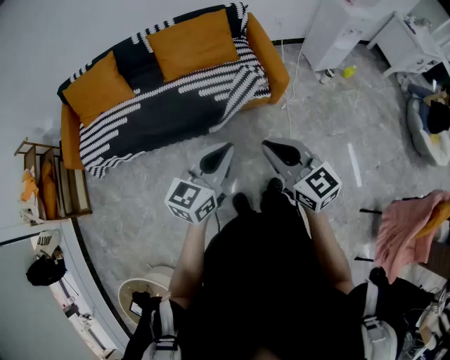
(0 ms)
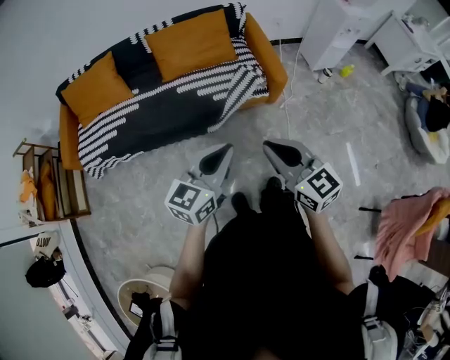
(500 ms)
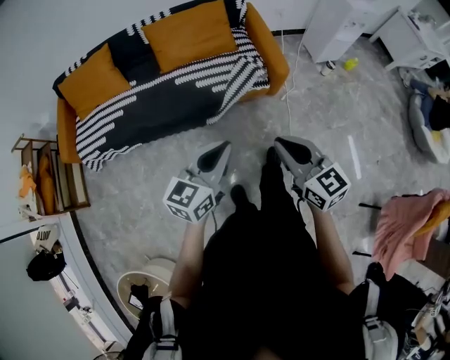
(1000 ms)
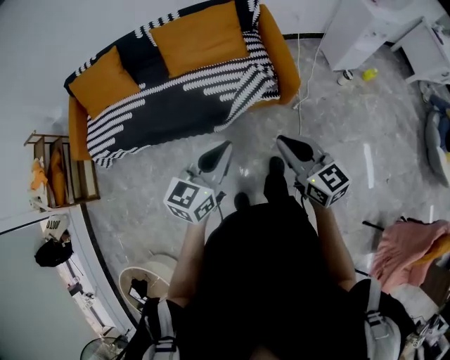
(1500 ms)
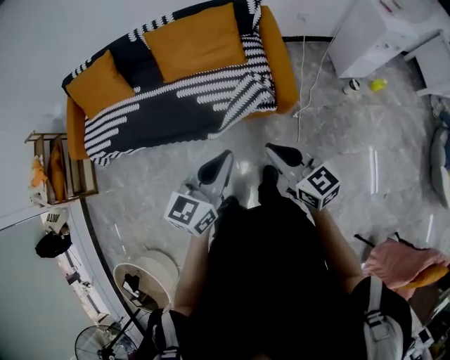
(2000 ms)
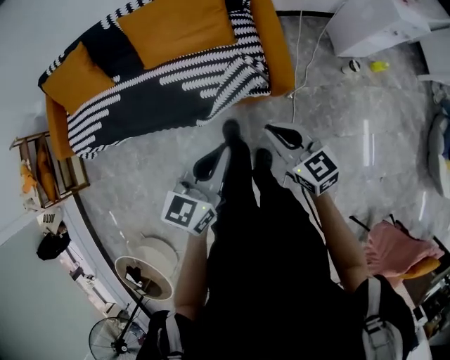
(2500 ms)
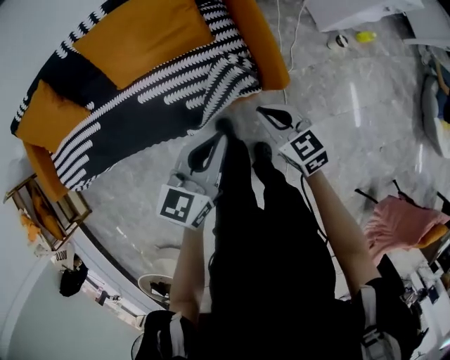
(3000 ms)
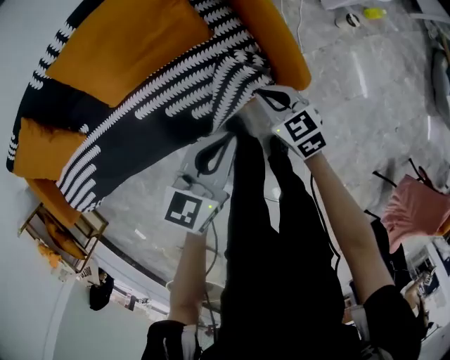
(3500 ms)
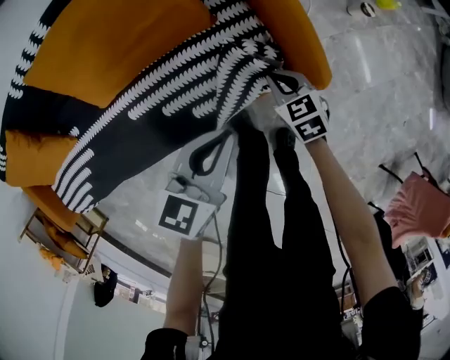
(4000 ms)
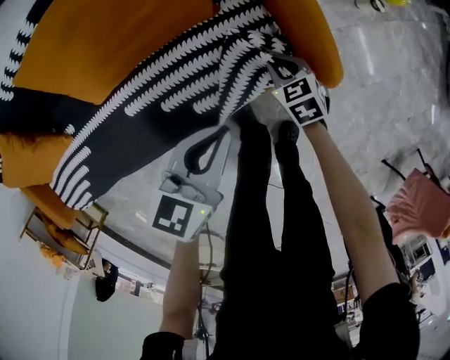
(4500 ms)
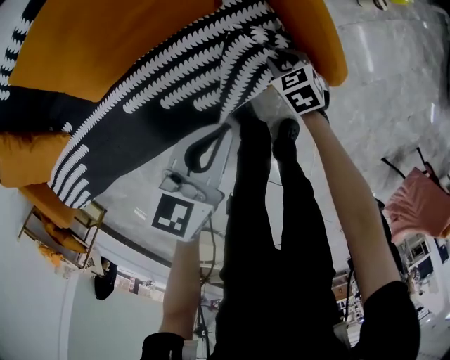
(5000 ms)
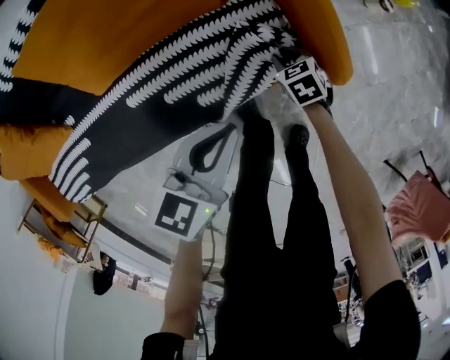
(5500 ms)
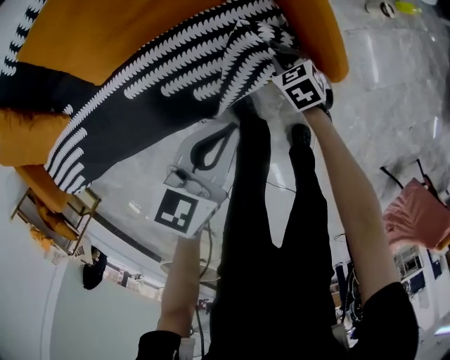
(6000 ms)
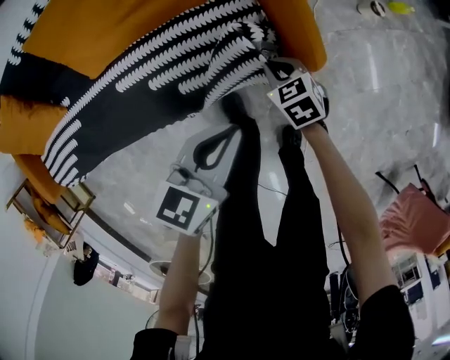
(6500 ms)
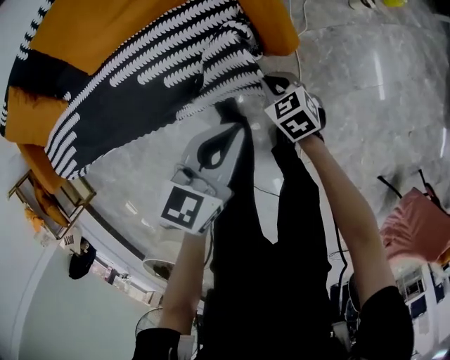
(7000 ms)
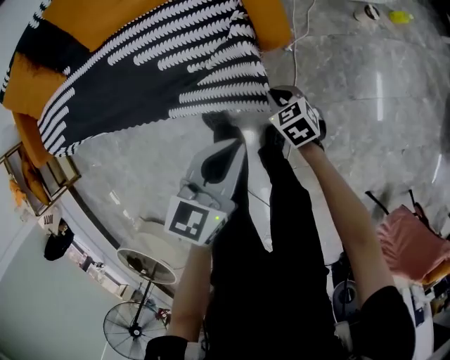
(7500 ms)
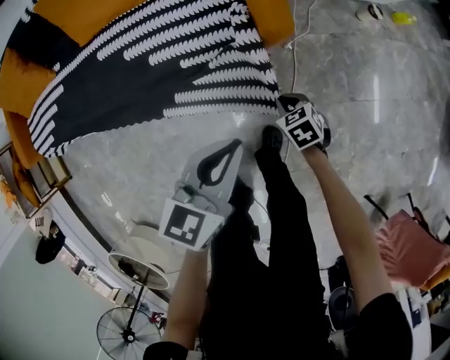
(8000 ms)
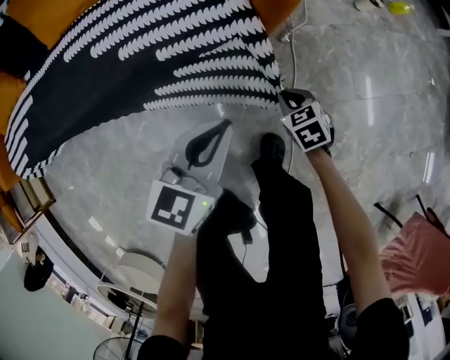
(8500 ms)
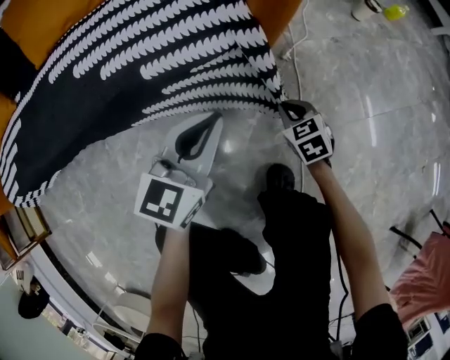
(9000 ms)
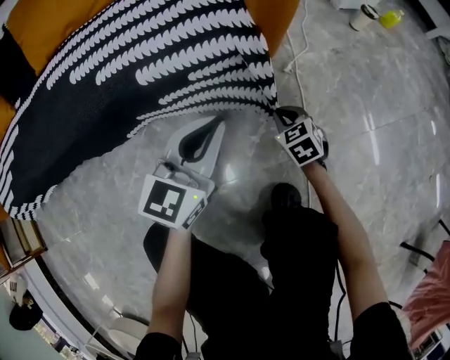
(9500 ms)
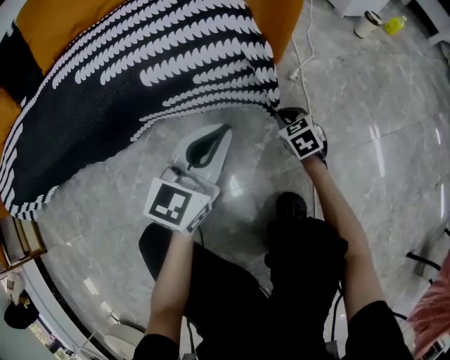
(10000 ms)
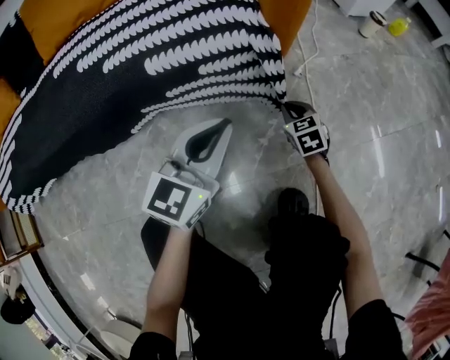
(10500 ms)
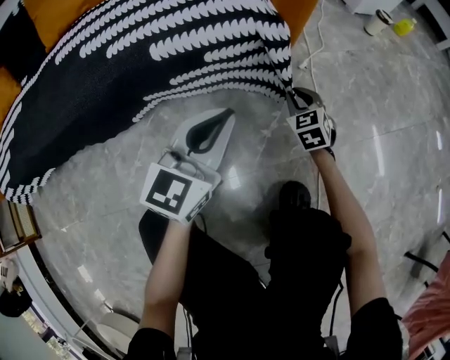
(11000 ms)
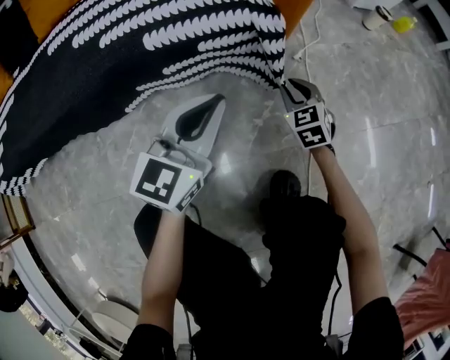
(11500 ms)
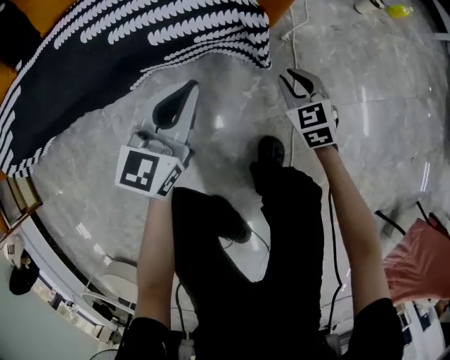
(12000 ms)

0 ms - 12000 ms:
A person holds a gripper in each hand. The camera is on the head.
0 ms - 2000 ms: The grippers both shift forward and to the right by approximately 25 cm.
2000 ms - 4000 ms: The right gripper is displaced downward and forward by some 60 cm, and tilts its fingers about 40 degrees downward; the left gripper travels forward and downward by some 40 cm, and rotates approximately 30 degrees.
4000 ms - 6000 ms: The right gripper shifts some 10 cm downward.
6000 ms - 8000 ms: The right gripper travels backward by about 20 cm. The left gripper travels backward and to the right by about 20 cm.
8000 ms - 10000 ms: Both grippers move downward, some 30 cm. The left gripper swivels approximately 20 degrees. The right gripper turns by roughly 20 degrees.
10000 ms - 12000 ms: The left gripper goes some 10 cm upward; the right gripper moves upward, about 20 cm.

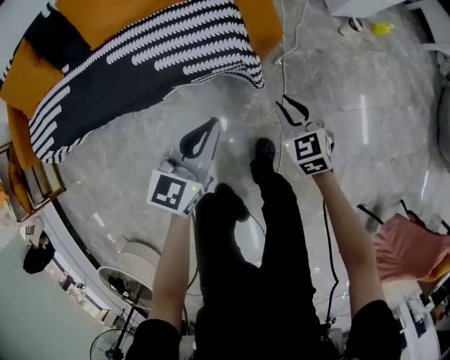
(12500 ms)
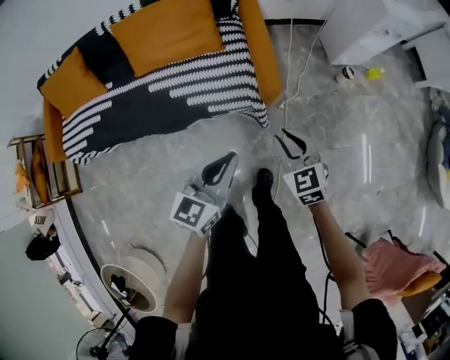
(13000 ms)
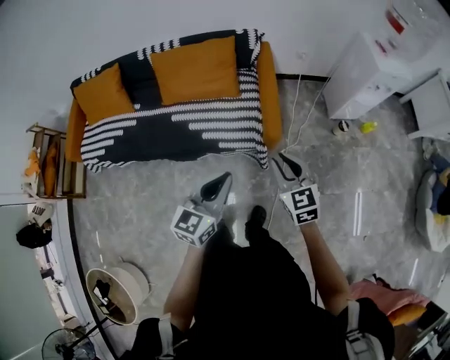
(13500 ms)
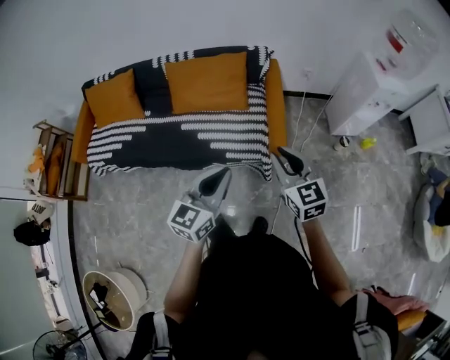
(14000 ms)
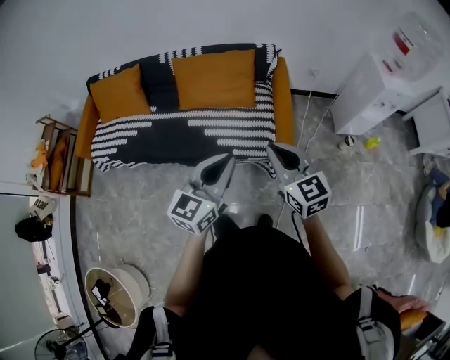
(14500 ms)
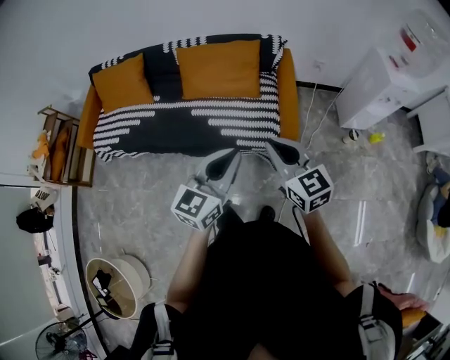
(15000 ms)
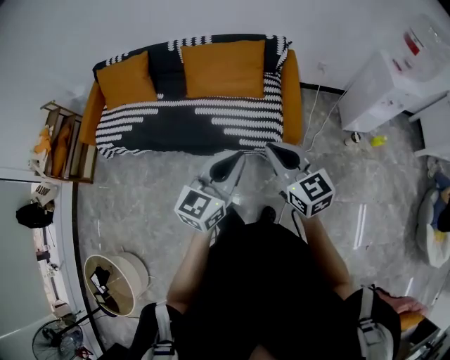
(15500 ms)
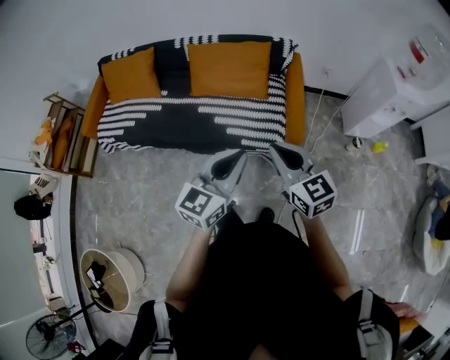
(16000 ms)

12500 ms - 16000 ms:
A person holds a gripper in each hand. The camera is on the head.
12500 ms - 14500 ms: The grippers both shift upward by roughly 40 cm. The right gripper swivels some 30 degrees.
14500 ms - 16000 ms: The grippers move only a little.

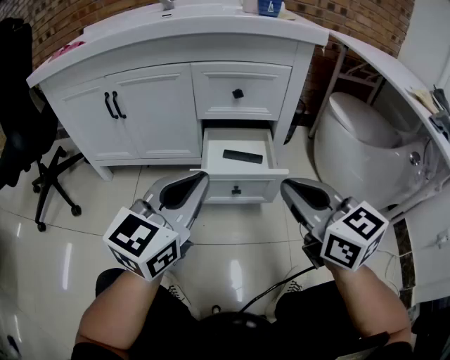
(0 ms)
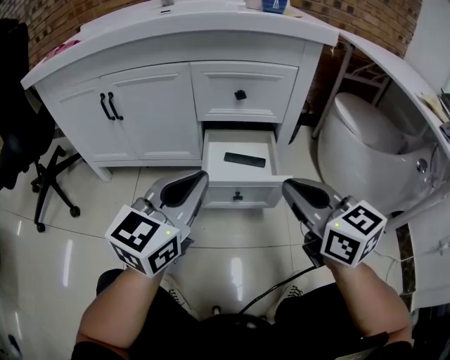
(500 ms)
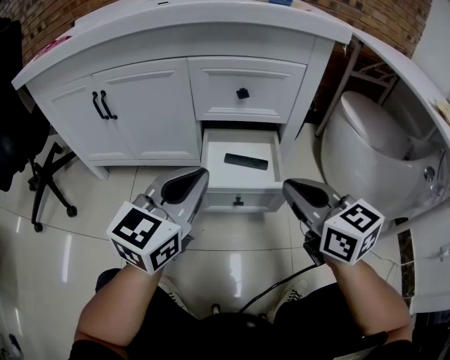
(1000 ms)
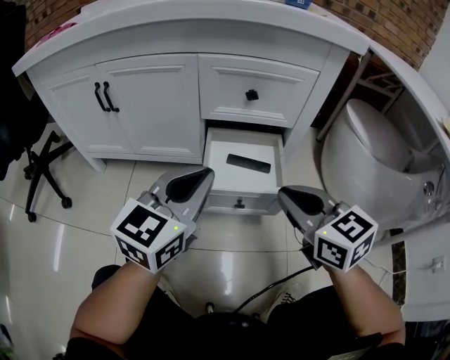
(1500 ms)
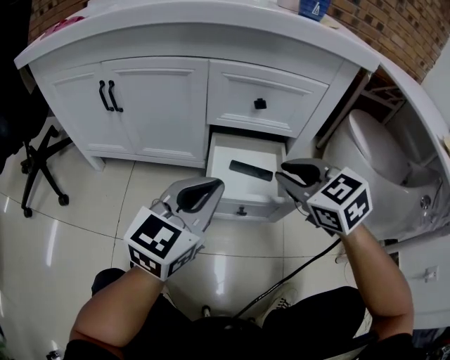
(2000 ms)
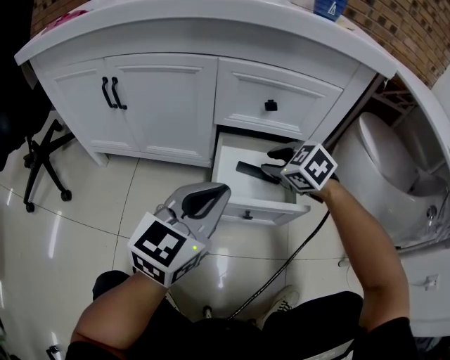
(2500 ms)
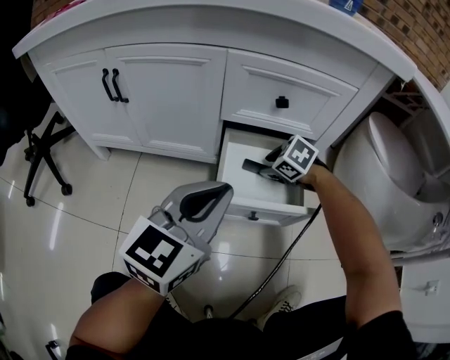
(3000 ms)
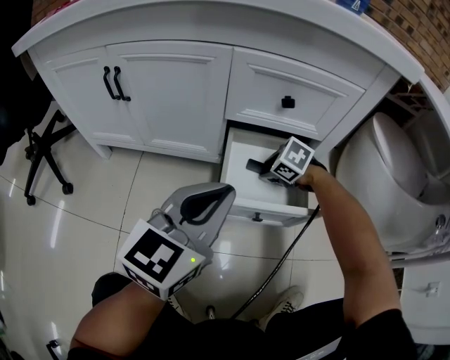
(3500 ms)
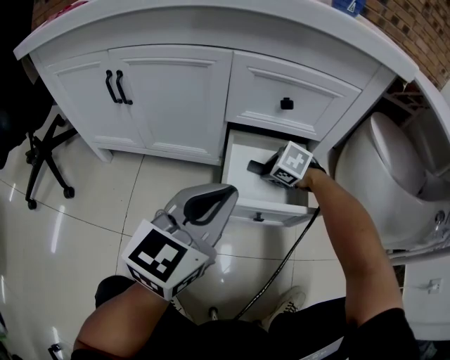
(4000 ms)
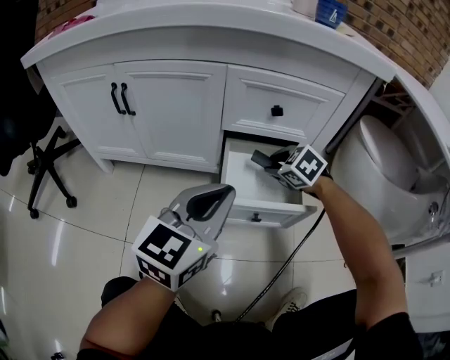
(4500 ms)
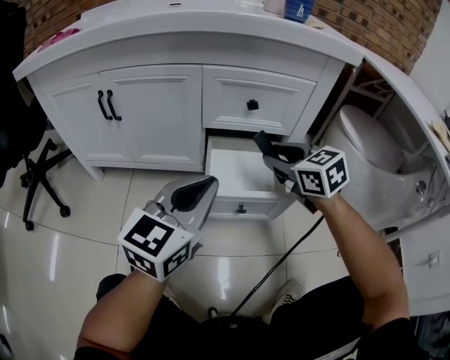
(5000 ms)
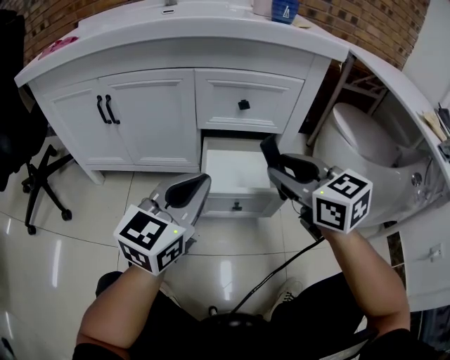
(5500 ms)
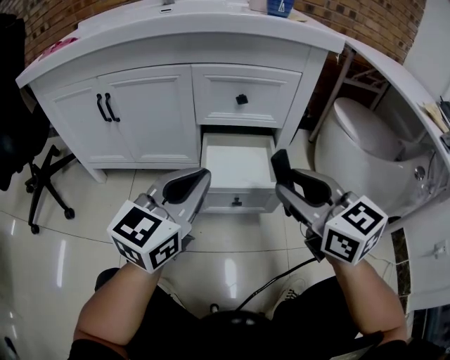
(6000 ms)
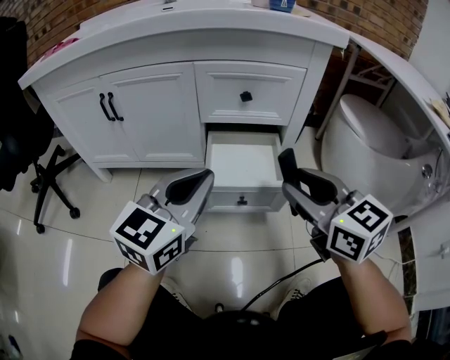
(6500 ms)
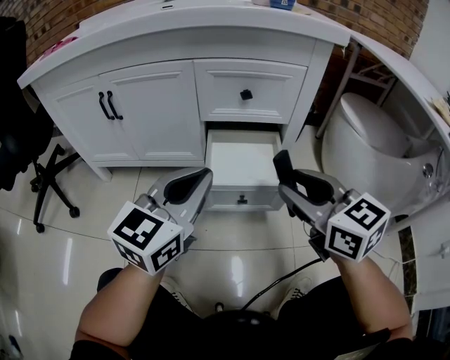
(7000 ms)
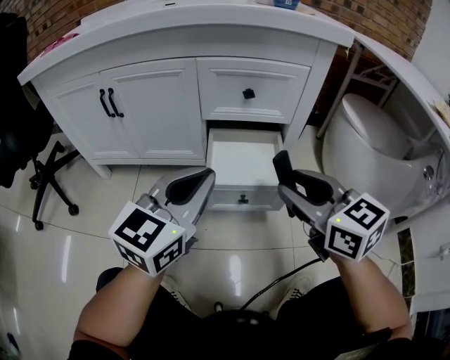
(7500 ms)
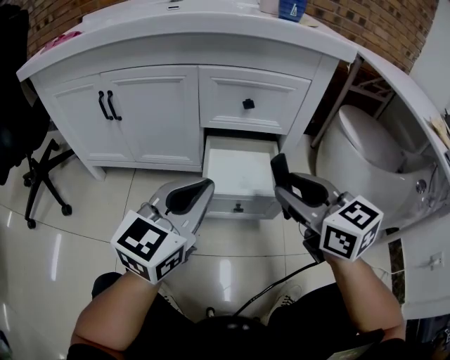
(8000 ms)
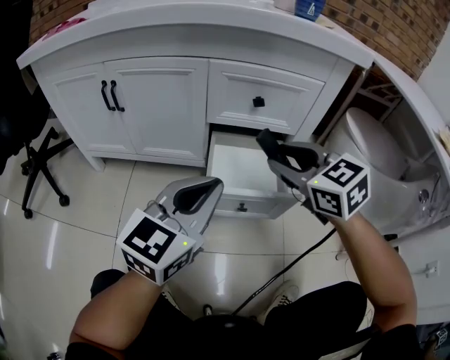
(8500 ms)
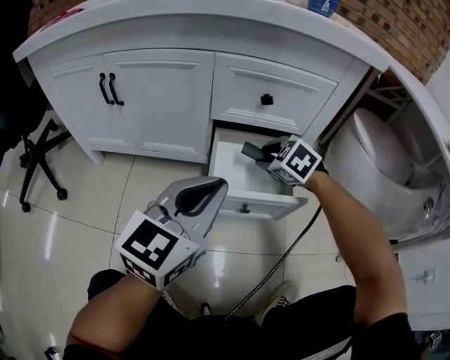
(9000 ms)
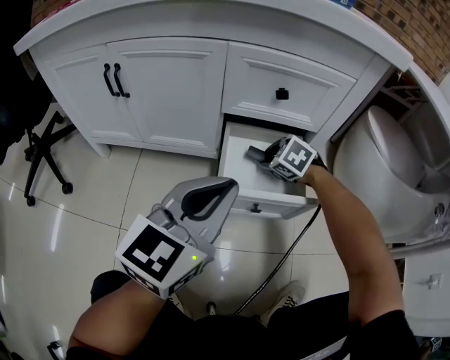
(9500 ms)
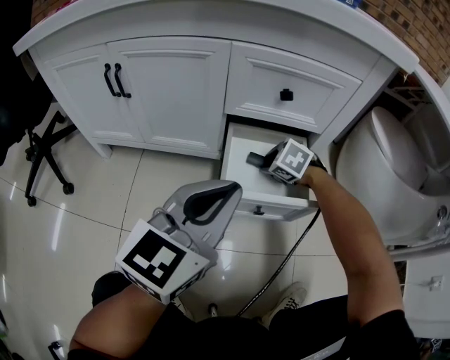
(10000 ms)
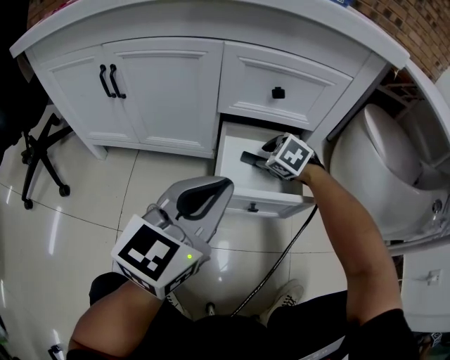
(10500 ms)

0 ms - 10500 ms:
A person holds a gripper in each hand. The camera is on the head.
0 ms - 2000 ms: The right gripper travels forward by some 15 cm, and swivels some 30 degrees. Meanwhile the left gripper moves forward, some 10 cm.
2000 ms - 4000 ms: The right gripper goes roughly 25 cm downward and forward, points its fingers approximately 30 degrees further downward, and opens.
4000 ms - 6500 ms: The right gripper travels upward and backward by some 35 cm, and tilts its fingers about 60 degrees upward.
6500 ms - 8500 ms: The right gripper moves forward, approximately 10 cm, and swivels approximately 20 degrees.
8500 ms - 10500 ms: The right gripper is displaced downward and forward by approximately 25 cm, and angles its fingers downward, by approximately 30 degrees.

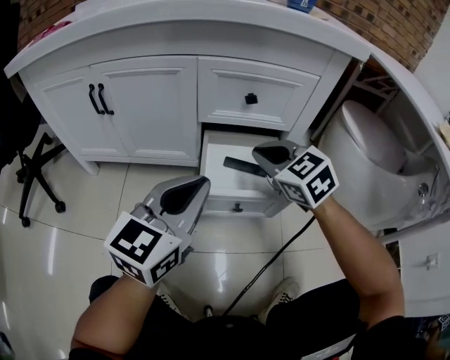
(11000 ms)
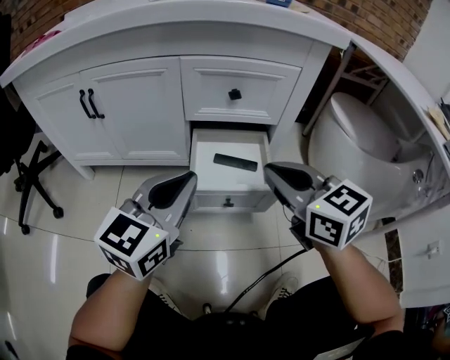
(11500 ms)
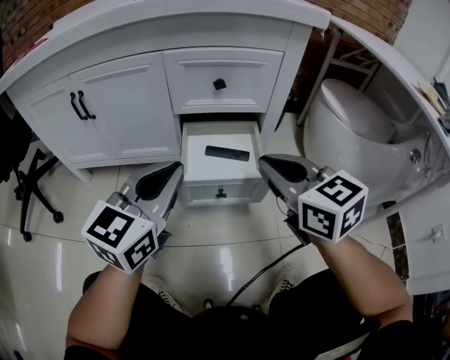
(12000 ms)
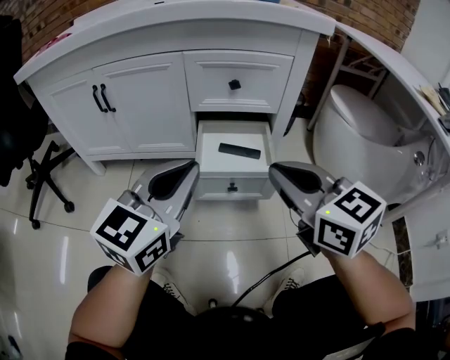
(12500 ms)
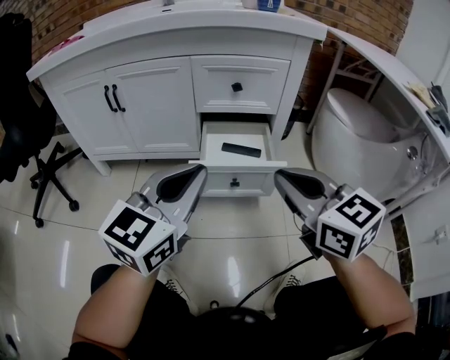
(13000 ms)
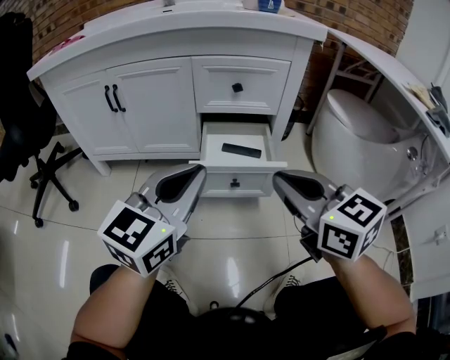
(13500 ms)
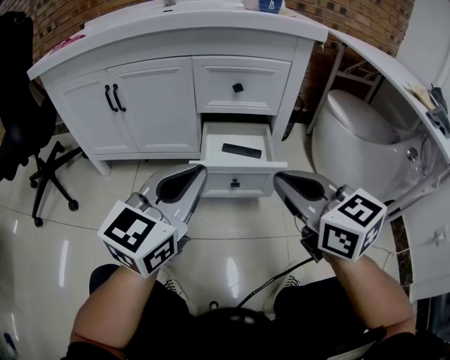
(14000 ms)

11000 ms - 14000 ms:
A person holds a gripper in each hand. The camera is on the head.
11000 ms - 12500 ms: The left gripper heads backward, covering about 5 cm. Meanwhile the right gripper is displaced backward and upward by approximately 20 cm, and turns by about 30 degrees.
12500 ms - 14000 ms: The grippers move only a little.
